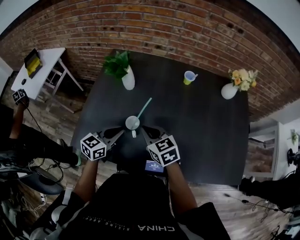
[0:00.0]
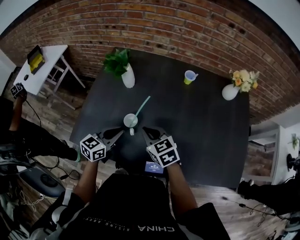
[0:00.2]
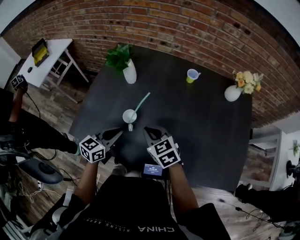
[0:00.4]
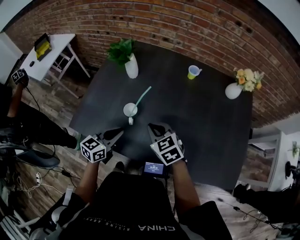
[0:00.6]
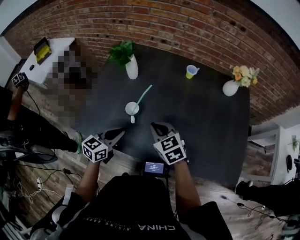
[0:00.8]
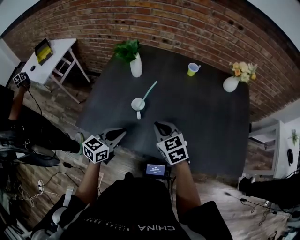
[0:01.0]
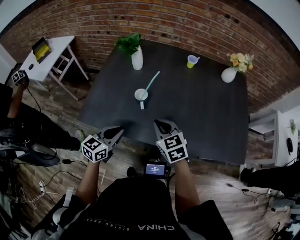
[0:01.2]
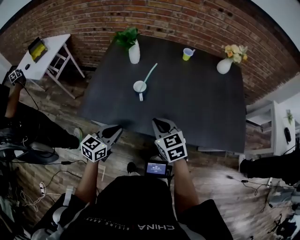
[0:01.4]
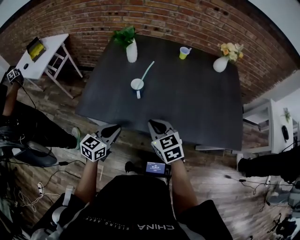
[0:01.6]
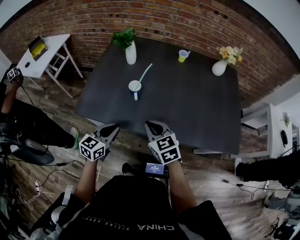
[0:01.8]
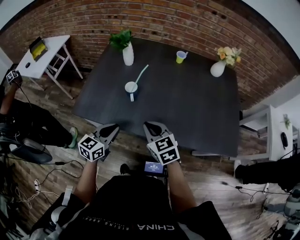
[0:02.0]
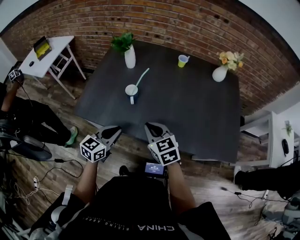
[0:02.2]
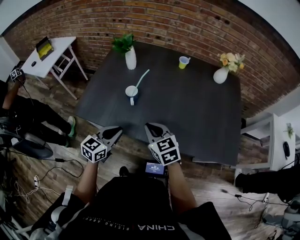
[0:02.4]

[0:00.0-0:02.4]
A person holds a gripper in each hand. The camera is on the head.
0:00.0 to 0:01.2: Both grippers travel together backward, some 15 cm.
0:01.2 to 0:02.4: The right gripper is displaced backward by about 5 cm; the left gripper moves to the right, some 5 cm.

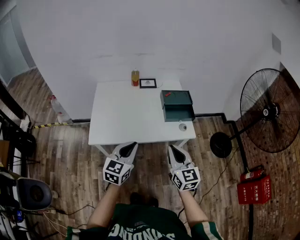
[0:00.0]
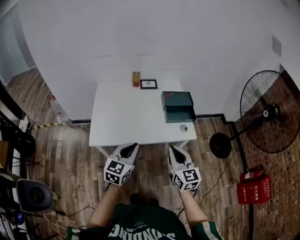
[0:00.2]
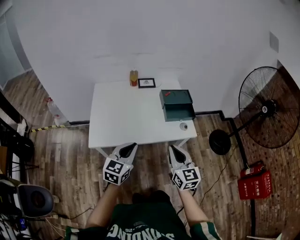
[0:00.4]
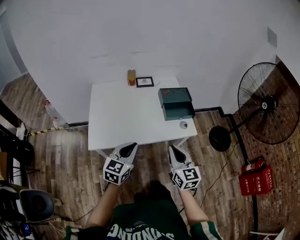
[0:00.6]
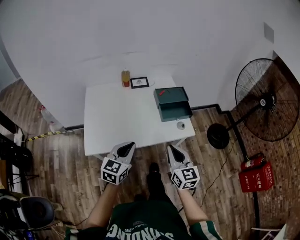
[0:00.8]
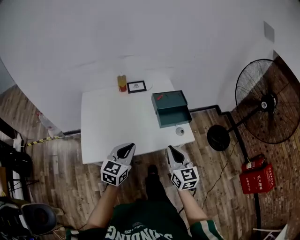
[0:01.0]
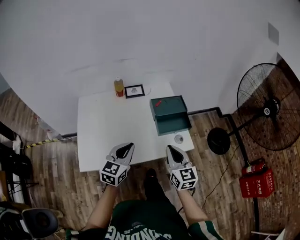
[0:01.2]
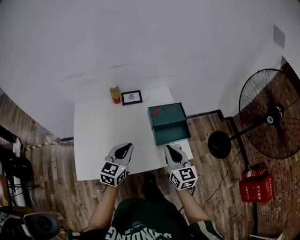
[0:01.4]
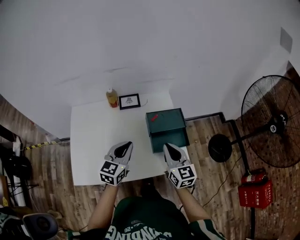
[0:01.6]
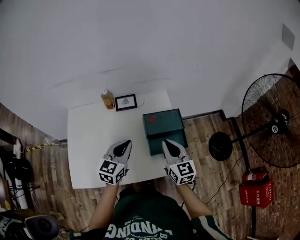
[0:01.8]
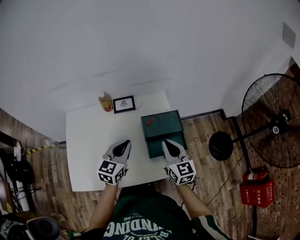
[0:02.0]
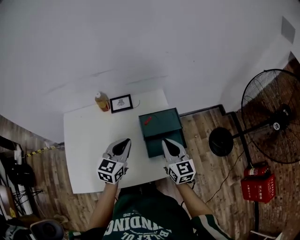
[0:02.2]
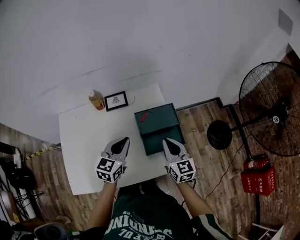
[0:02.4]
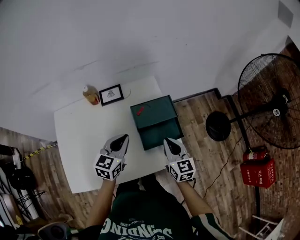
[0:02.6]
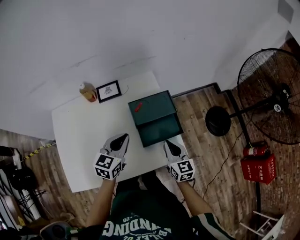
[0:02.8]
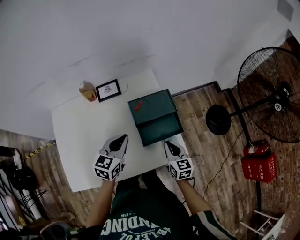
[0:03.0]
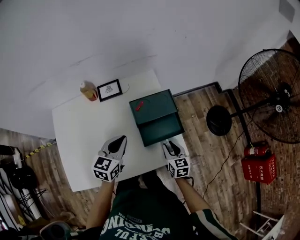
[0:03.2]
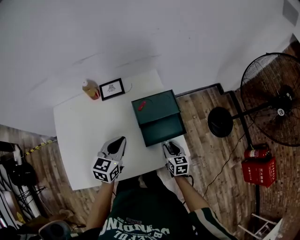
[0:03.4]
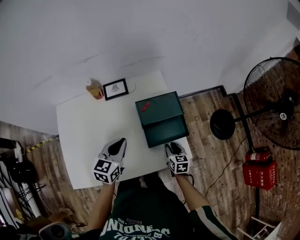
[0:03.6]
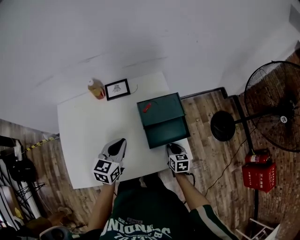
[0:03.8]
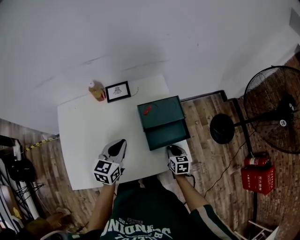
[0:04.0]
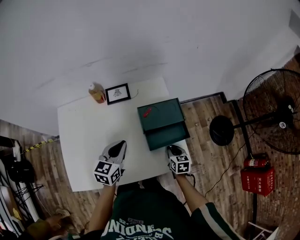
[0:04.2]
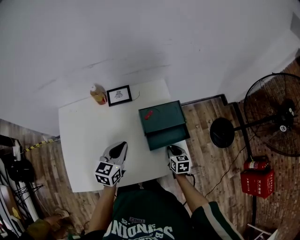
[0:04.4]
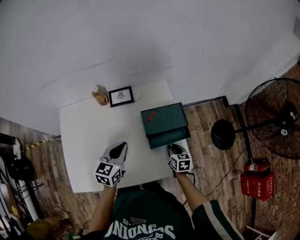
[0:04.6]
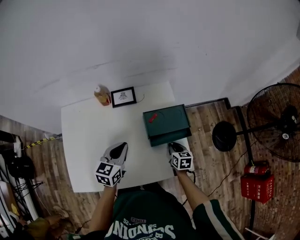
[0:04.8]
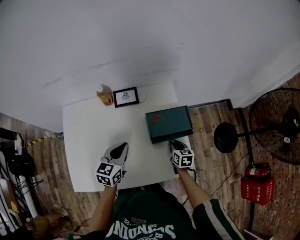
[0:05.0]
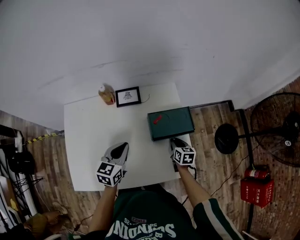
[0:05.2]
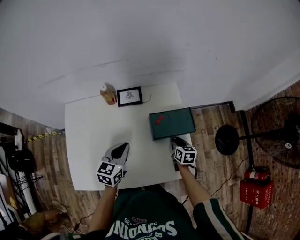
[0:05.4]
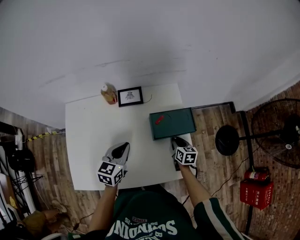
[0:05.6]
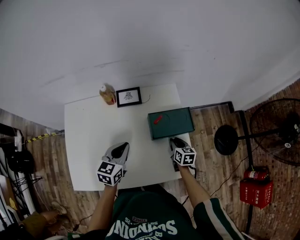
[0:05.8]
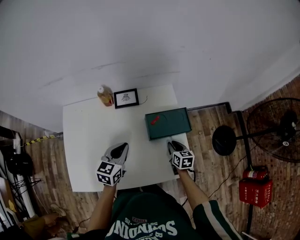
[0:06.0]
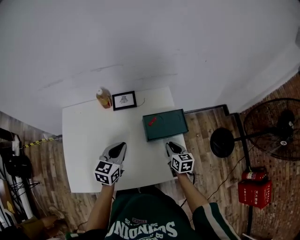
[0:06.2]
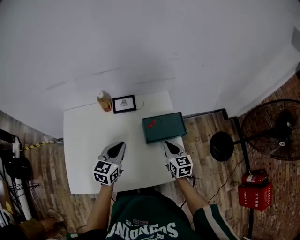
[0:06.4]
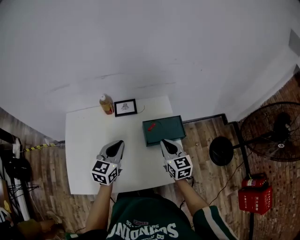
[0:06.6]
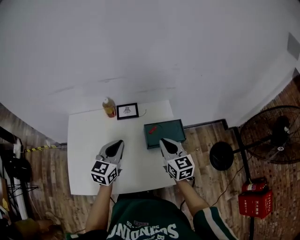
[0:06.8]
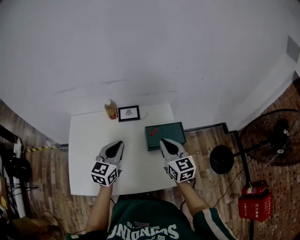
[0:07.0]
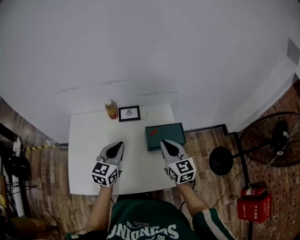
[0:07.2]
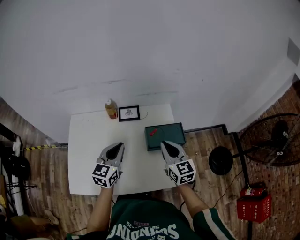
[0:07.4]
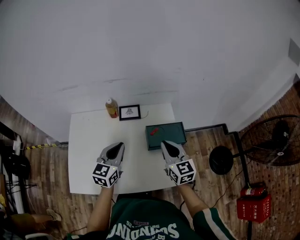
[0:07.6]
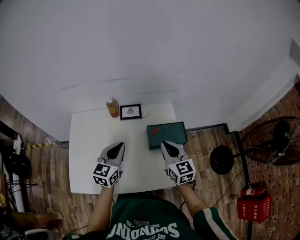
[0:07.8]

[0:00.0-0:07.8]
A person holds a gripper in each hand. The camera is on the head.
0:00.0 to 0:01.6: The grippers both shift forward by some 30 cm.
0:01.6 to 0:03.2: The right gripper is displaced downward by approximately 20 cm, changes its angle by roughly 30 degrees, and opens its fingers. The left gripper heads downward and forward, covering approximately 10 cm.
0:03.2 to 0:04.6: The right gripper goes approximately 5 cm forward.
0:04.6 to 0:06.2: The right gripper goes approximately 5 cm upward.
0:06.2 to 0:07.8: The right gripper goes roughly 20 cm upward, and turns by some 30 degrees. Meanwhile the left gripper moves upward, about 10 cm.

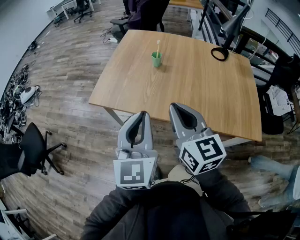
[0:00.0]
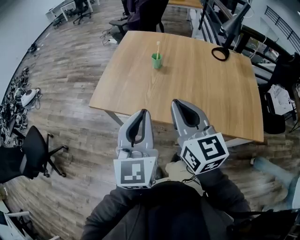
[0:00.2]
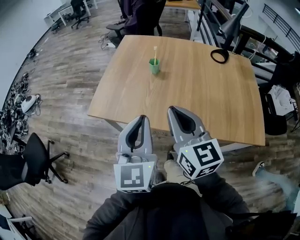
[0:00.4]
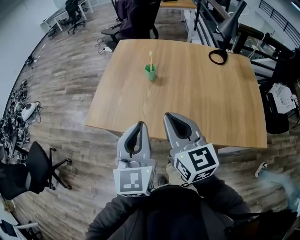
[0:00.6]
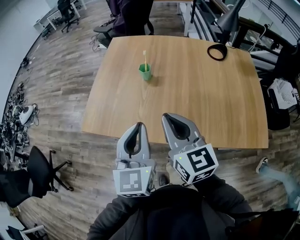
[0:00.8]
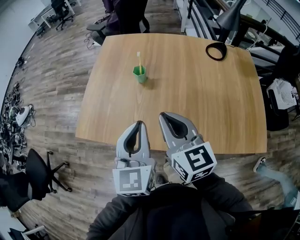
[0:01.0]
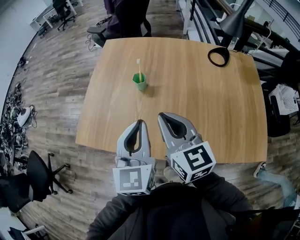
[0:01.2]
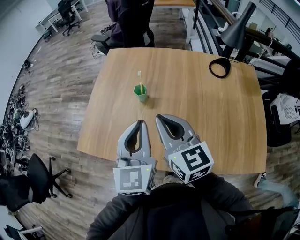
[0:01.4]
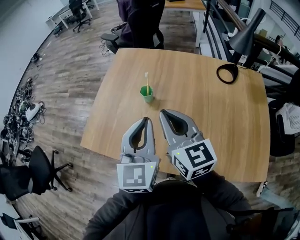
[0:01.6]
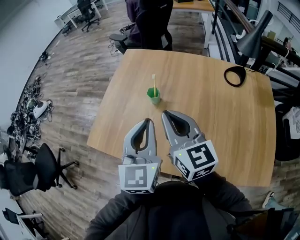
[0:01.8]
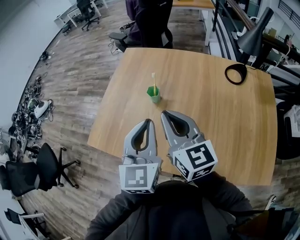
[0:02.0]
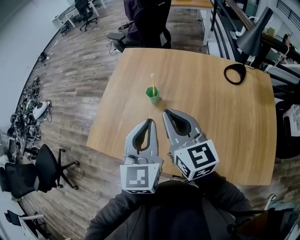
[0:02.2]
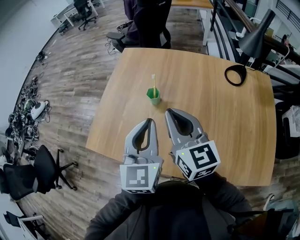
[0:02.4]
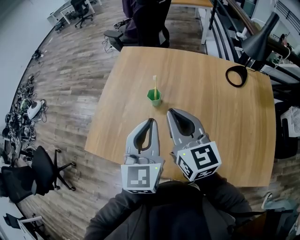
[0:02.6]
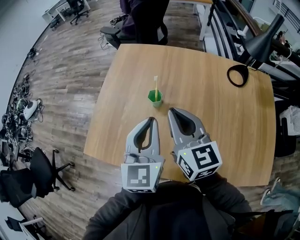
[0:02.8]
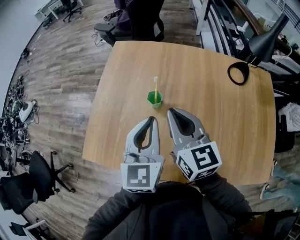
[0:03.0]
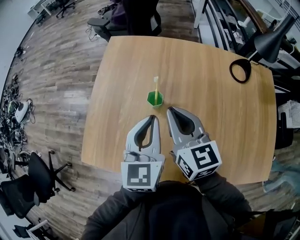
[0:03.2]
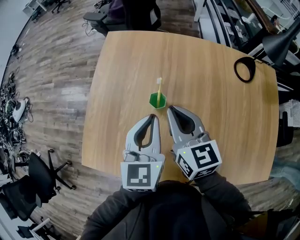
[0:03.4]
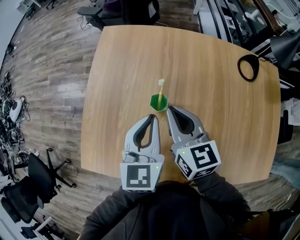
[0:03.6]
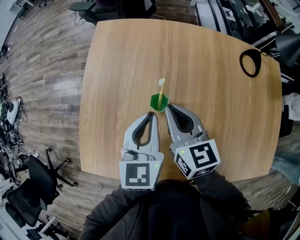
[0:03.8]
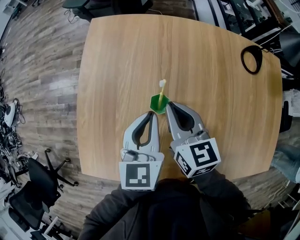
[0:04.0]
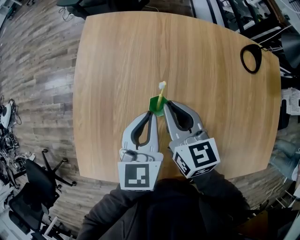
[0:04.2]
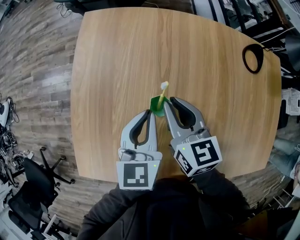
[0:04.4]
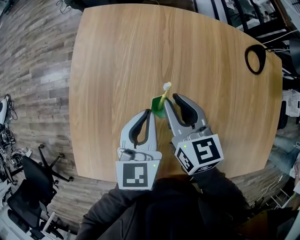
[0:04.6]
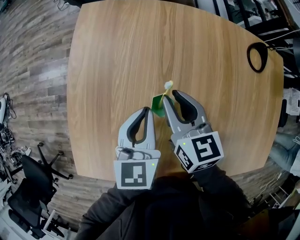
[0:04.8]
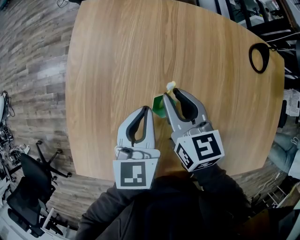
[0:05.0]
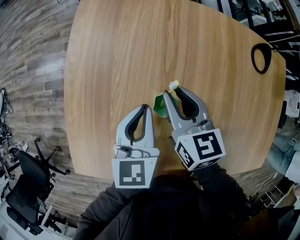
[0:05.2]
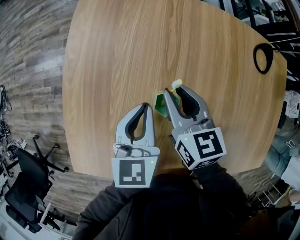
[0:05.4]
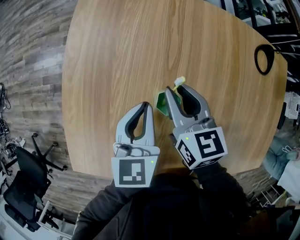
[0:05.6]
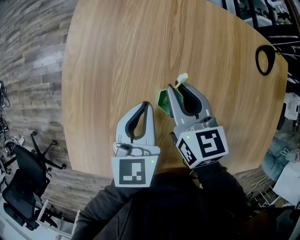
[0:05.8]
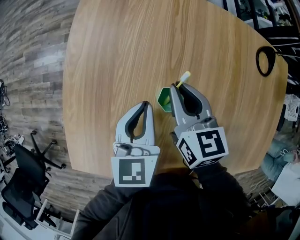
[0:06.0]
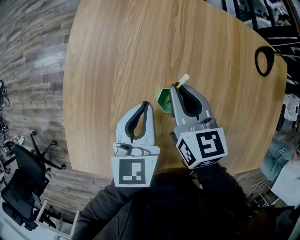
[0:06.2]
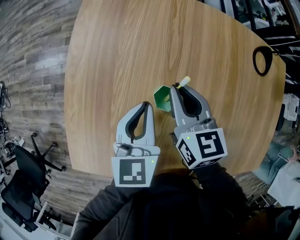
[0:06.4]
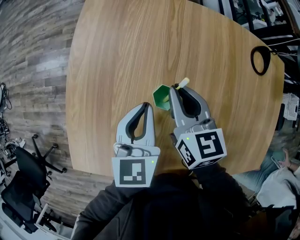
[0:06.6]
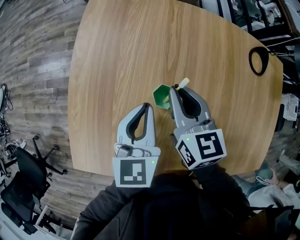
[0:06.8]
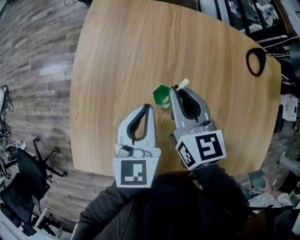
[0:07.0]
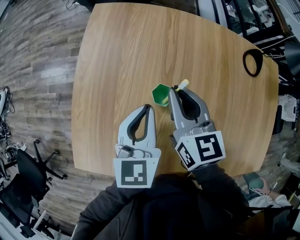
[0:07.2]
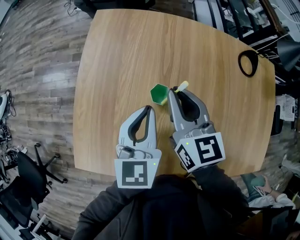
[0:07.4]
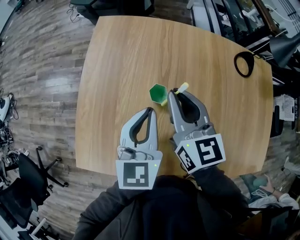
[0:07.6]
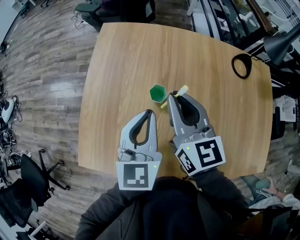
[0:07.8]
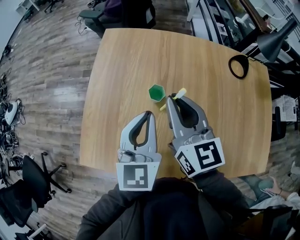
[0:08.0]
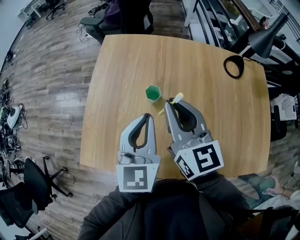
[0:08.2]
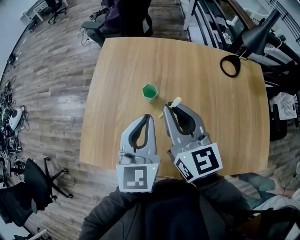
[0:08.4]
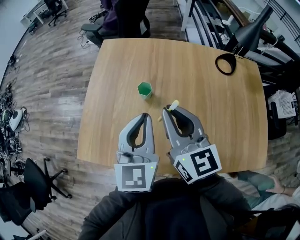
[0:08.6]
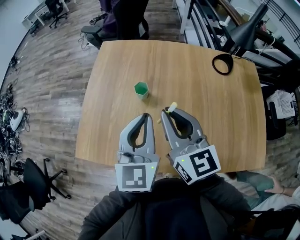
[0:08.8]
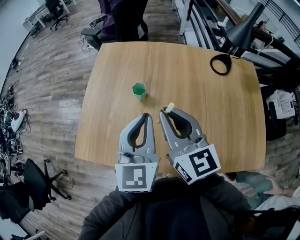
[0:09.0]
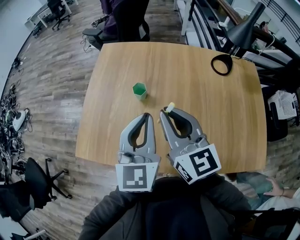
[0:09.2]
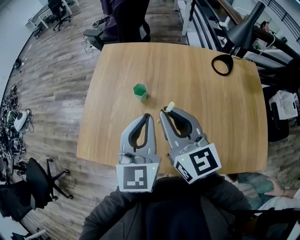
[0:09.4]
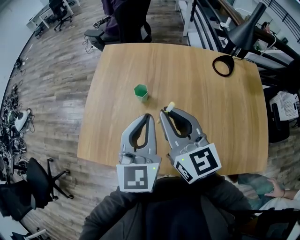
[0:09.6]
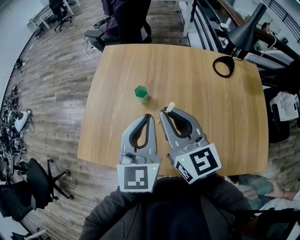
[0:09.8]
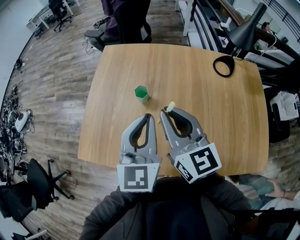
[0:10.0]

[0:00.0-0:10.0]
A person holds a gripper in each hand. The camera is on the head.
0:00.0 to 0:01.4: The left gripper travels forward and to the right by about 25 cm. The right gripper goes approximately 25 cm forward.
0:01.4 to 0:02.8: The grippers both shift forward by about 10 cm.
0:02.8 to 0:04.2: The two grippers go approximately 20 cm forward and downward. The left gripper rotates roughly 20 degrees. Meanwhile the right gripper turns by some 20 degrees.
0:04.2 to 0:05.8: The left gripper shifts roughly 5 cm downward, while the right gripper shifts by approximately 5 cm.
0:05.8 to 0:07.2: The two grippers go about 5 cm upward.
0:07.2 to 0:08.6: The left gripper travels backward, upward and to the right by roughly 20 cm. The right gripper travels backward and upward by approximately 20 cm.
0:08.6 to 0:10.0: The grippers make only small movements.

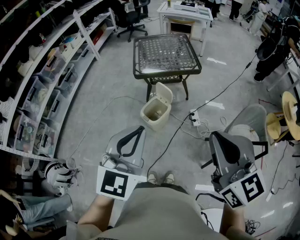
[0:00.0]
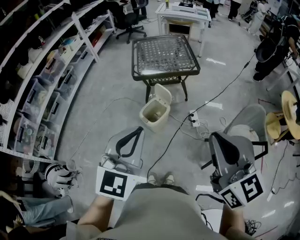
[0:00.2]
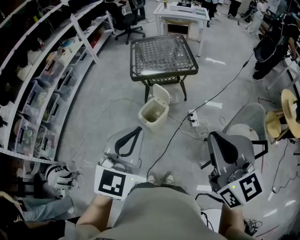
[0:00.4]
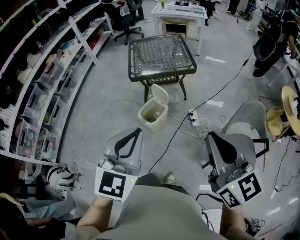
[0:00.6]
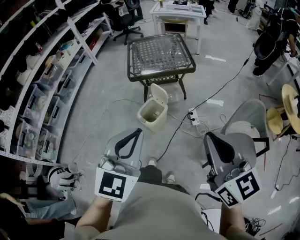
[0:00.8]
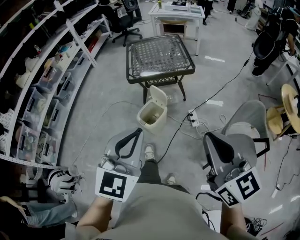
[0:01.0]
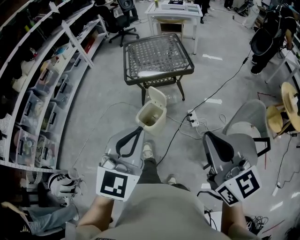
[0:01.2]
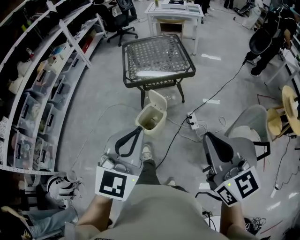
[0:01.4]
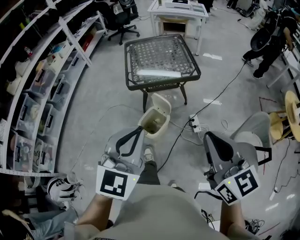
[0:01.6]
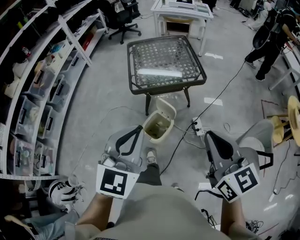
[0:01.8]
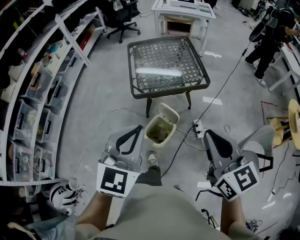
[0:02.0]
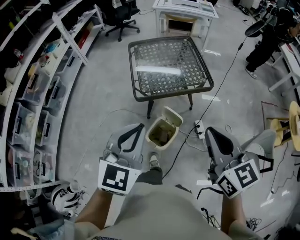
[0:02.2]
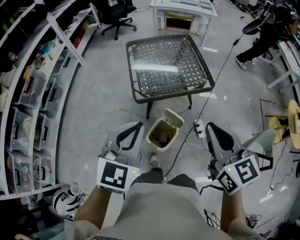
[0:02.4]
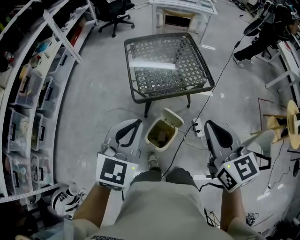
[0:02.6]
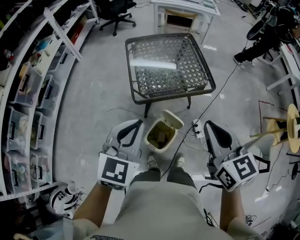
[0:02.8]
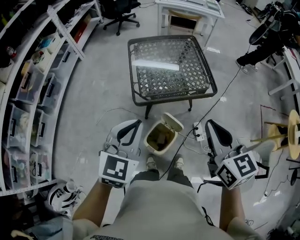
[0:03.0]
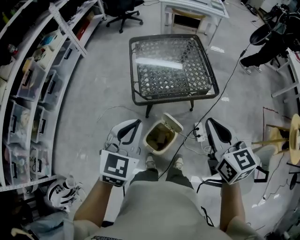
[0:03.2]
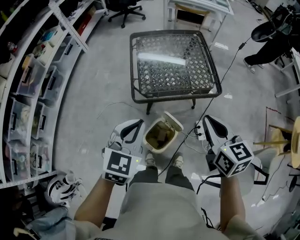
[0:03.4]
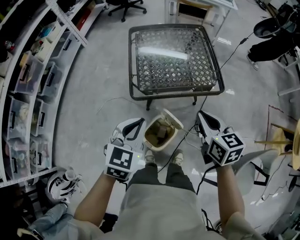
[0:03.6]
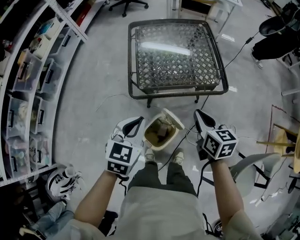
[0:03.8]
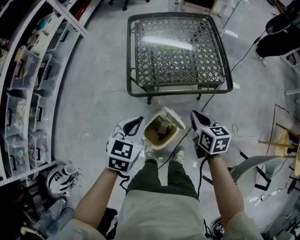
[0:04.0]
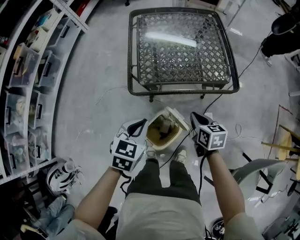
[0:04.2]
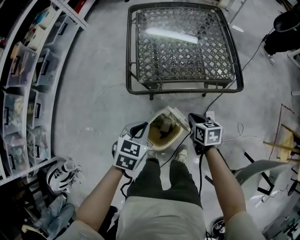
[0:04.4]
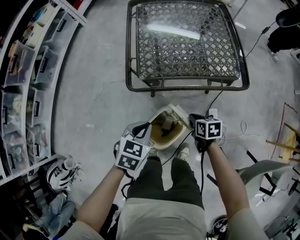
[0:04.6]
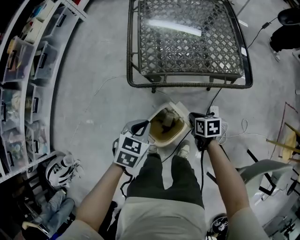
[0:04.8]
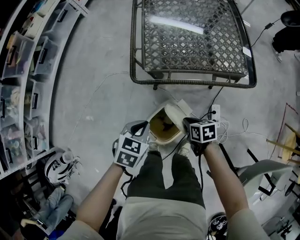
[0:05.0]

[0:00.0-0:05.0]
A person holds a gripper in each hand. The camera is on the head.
0:00.0 to 0:01.6: The right gripper shifts some 15 cm forward and downward; the left gripper goes about 15 cm forward.
0:01.6 to 0:03.4: The right gripper goes about 35 cm forward. The left gripper moves forward and downward, roughly 30 cm.
0:03.4 to 0:05.0: The grippers both shift downward by roughly 40 cm. The left gripper swivels some 30 degrees. The right gripper points its fingers about 30 degrees further downward.
